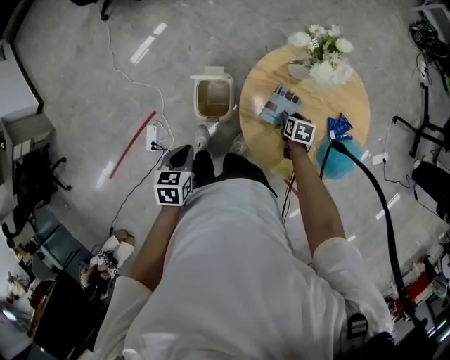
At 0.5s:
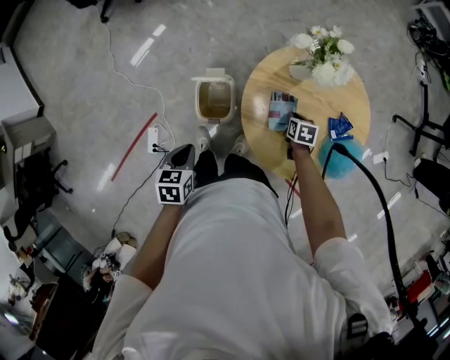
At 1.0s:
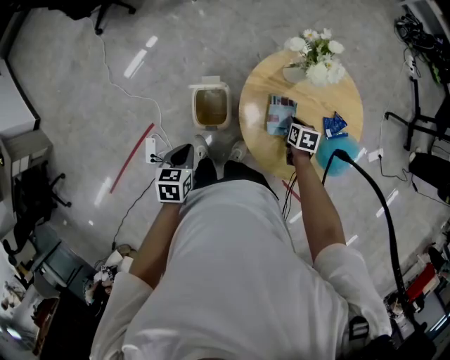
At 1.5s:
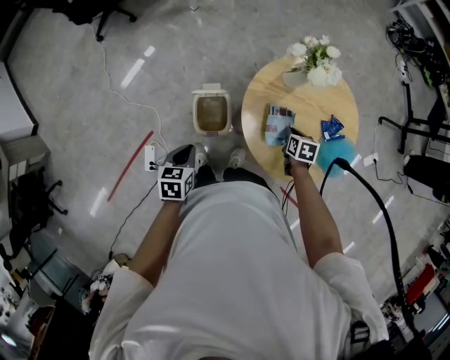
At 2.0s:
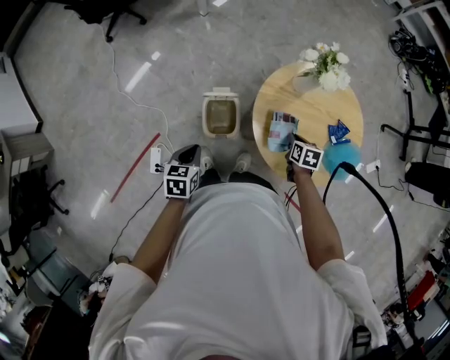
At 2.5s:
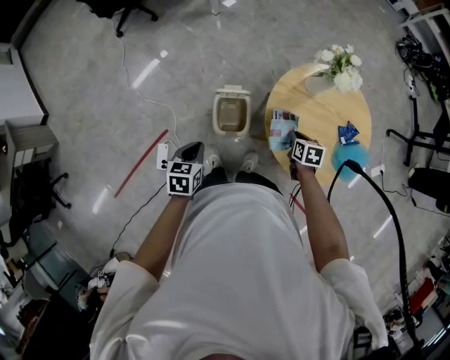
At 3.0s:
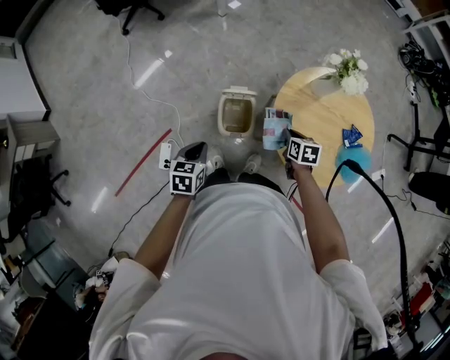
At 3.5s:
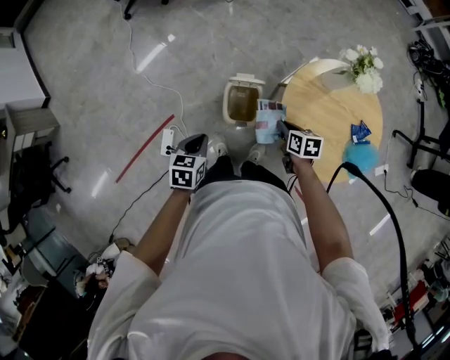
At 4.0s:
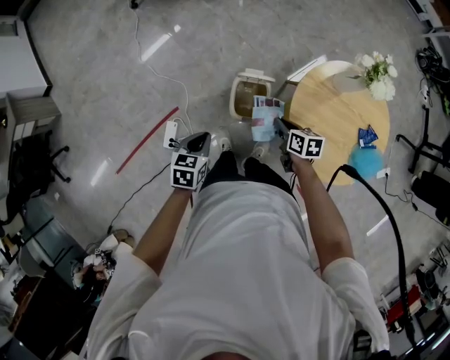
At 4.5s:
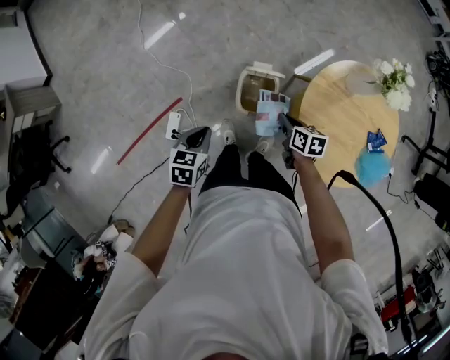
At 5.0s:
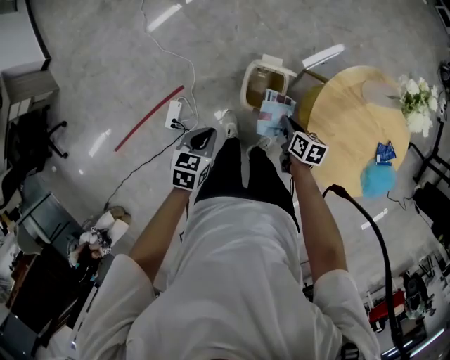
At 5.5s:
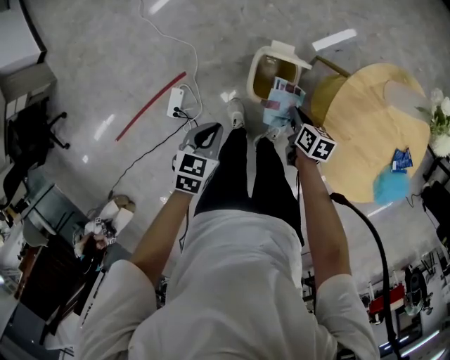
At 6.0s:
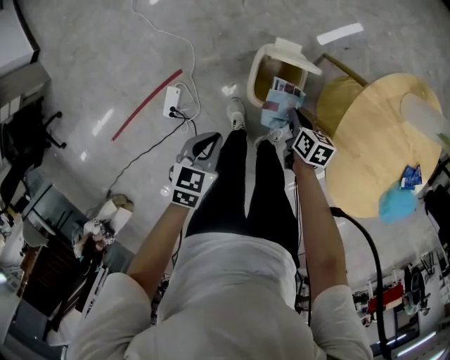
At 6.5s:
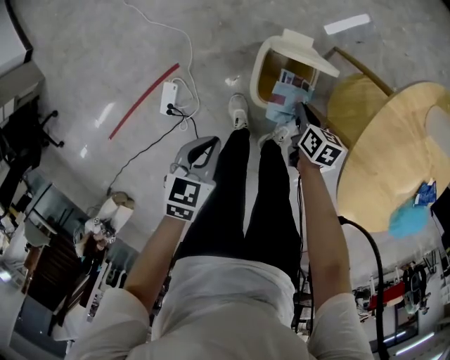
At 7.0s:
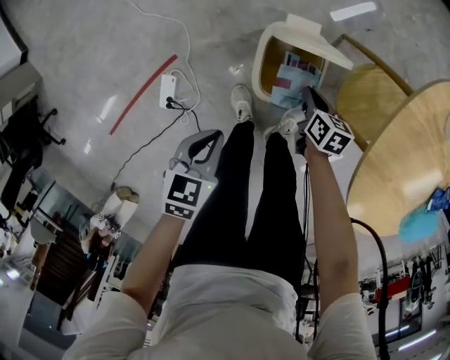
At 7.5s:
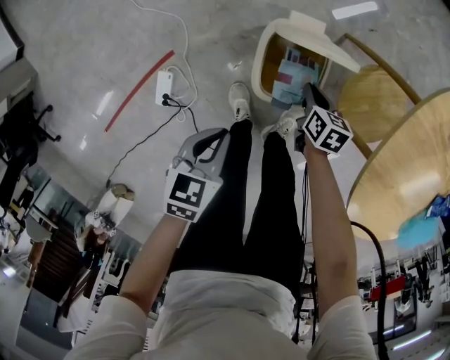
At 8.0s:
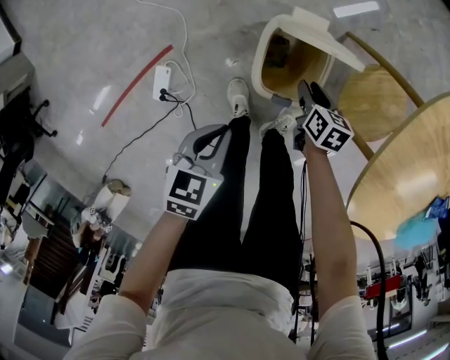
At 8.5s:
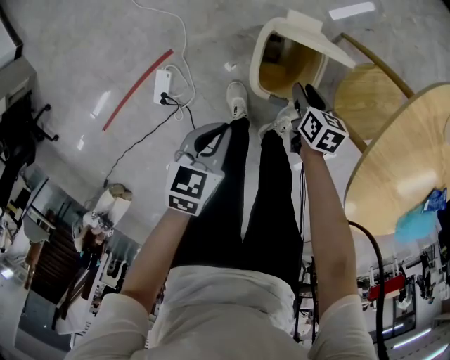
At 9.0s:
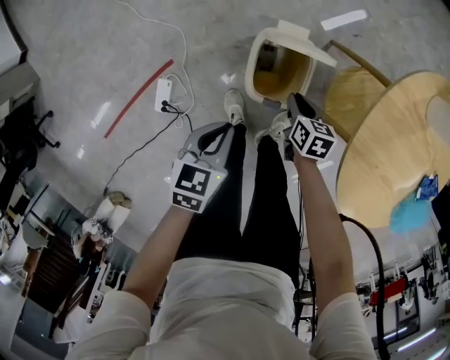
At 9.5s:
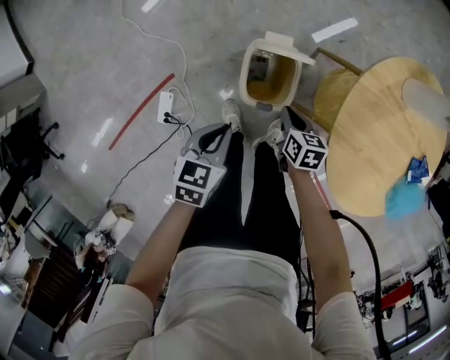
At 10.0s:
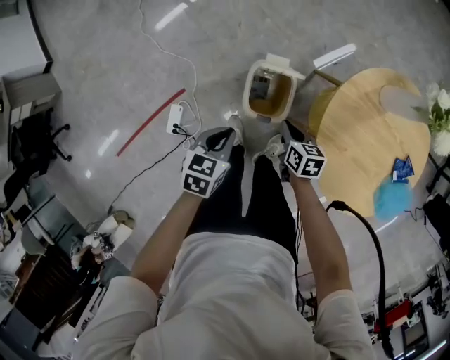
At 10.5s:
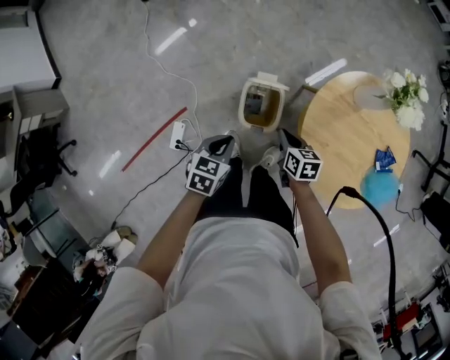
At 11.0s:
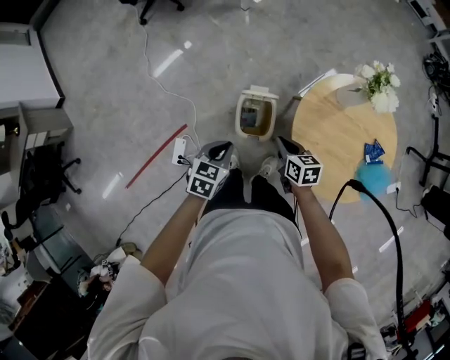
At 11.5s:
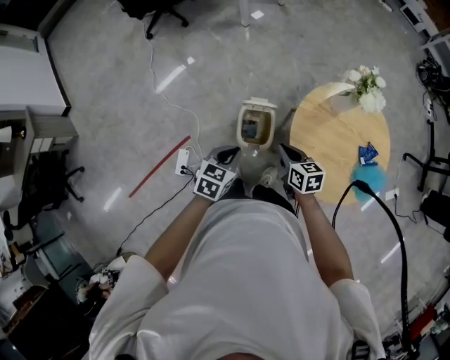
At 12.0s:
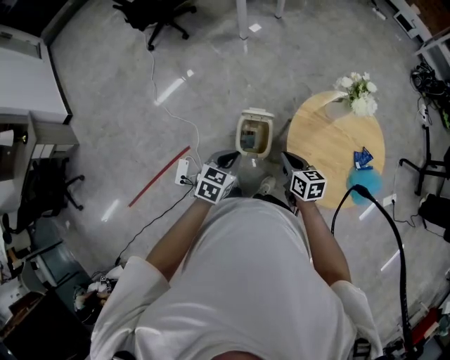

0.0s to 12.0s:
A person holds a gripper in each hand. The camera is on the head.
0.0s to 2.0s: The left gripper heads to the left, covering roughly 5 cm. Meanwhile the right gripper shifts approximately 15 cm upward, backward and to the left, and closes up.
2.0s to 4.0s: The right gripper is displaced to the left by roughly 20 cm, and swivels approximately 30 degrees. The left gripper goes approximately 10 cm to the left.
4.0s to 6.0s: The two grippers go about 20 cm downward.
6.0s to 8.0s: Both grippers move downward, roughly 15 cm. The right gripper opens its fingers.
8.0s to 10.0s: The two grippers go approximately 20 cm upward. The right gripper closes its fingers.
10.0s to 12.0s: The two grippers go some 20 cm upward.

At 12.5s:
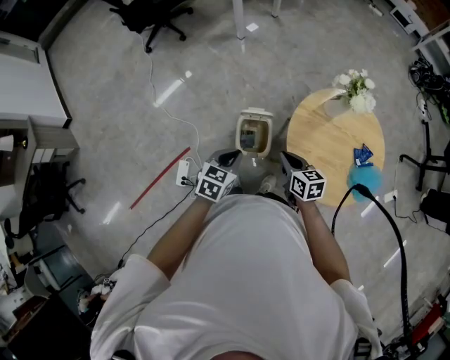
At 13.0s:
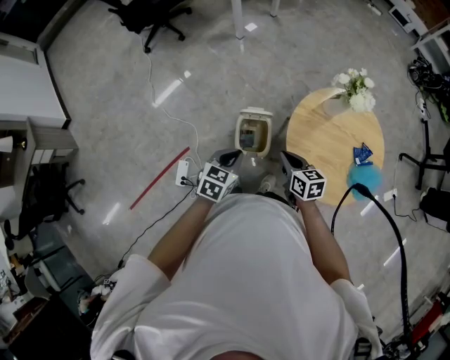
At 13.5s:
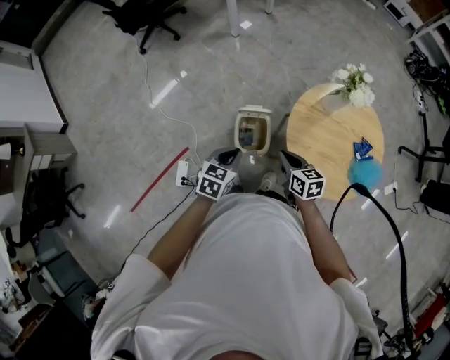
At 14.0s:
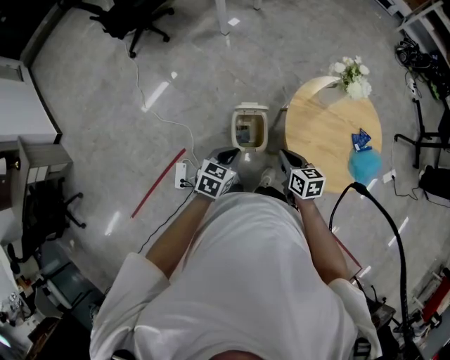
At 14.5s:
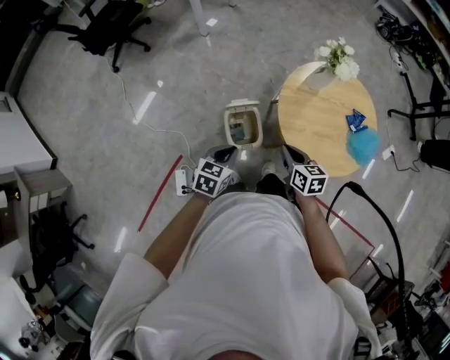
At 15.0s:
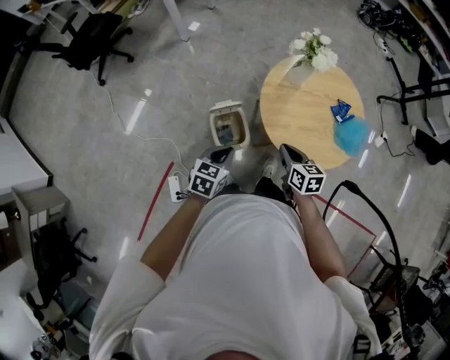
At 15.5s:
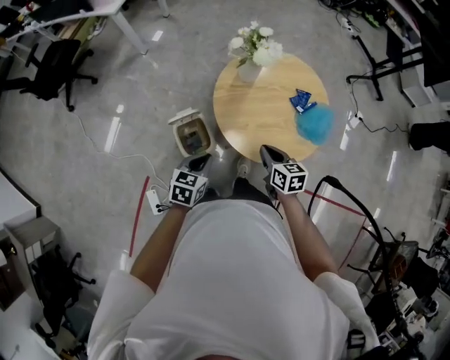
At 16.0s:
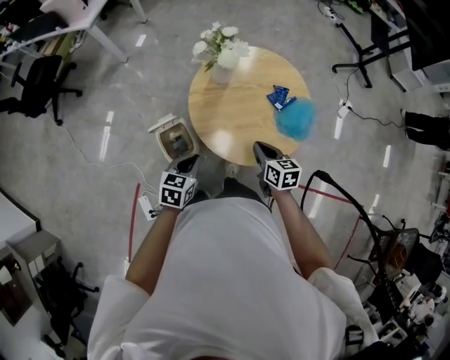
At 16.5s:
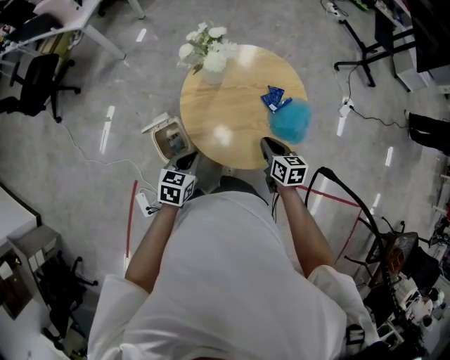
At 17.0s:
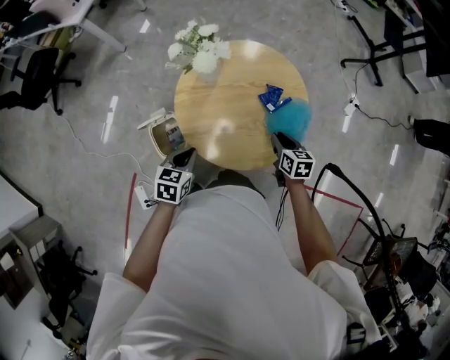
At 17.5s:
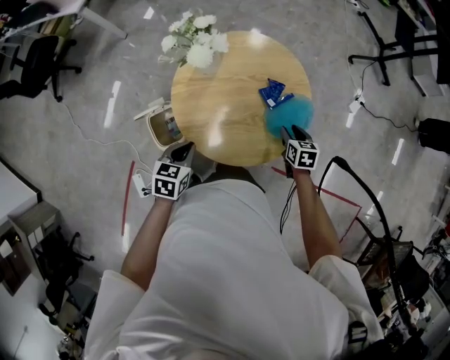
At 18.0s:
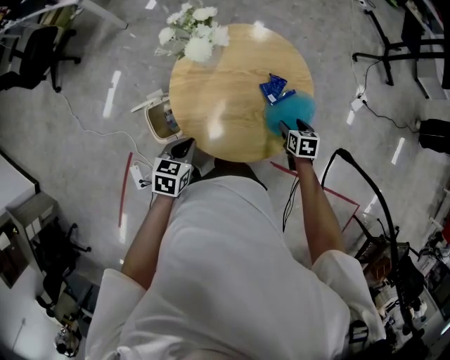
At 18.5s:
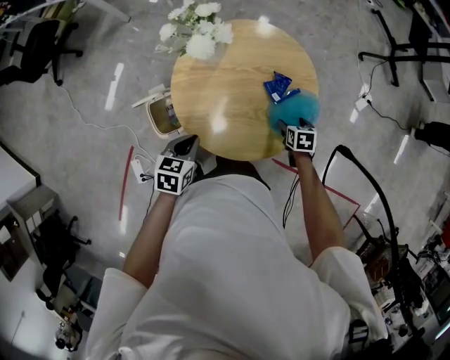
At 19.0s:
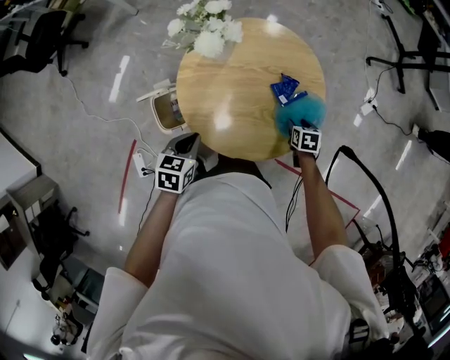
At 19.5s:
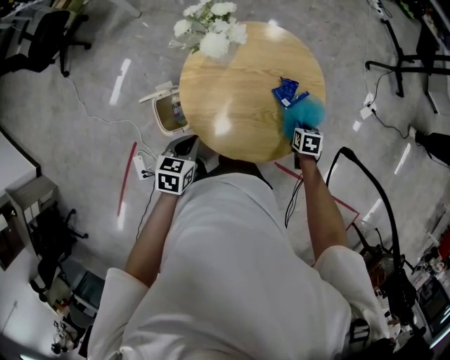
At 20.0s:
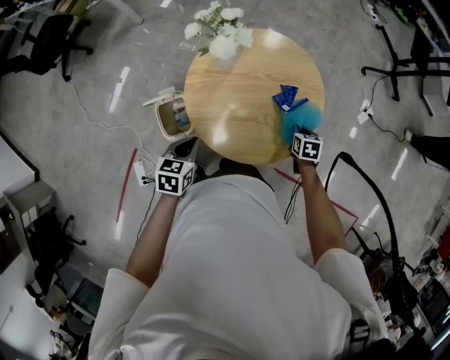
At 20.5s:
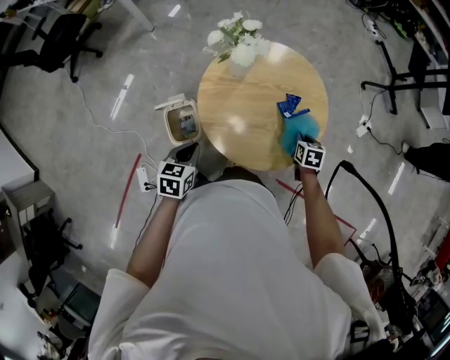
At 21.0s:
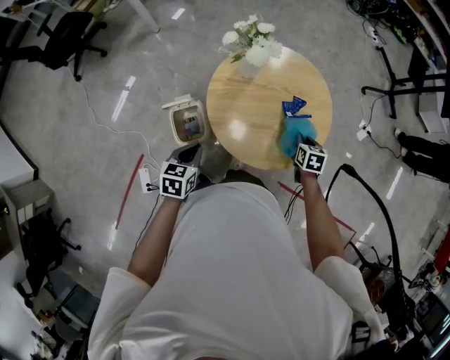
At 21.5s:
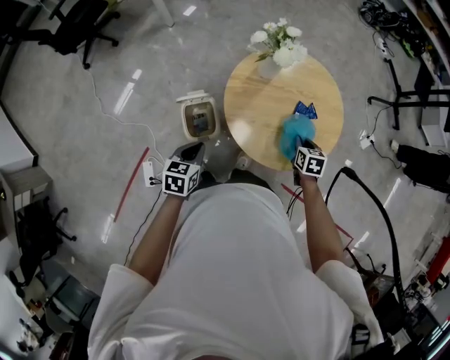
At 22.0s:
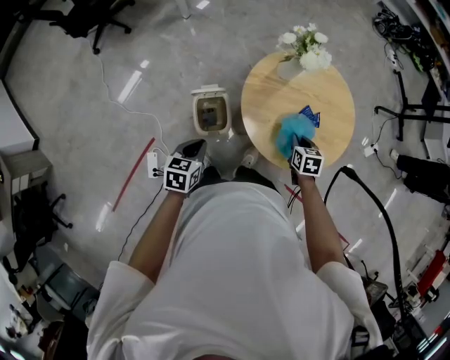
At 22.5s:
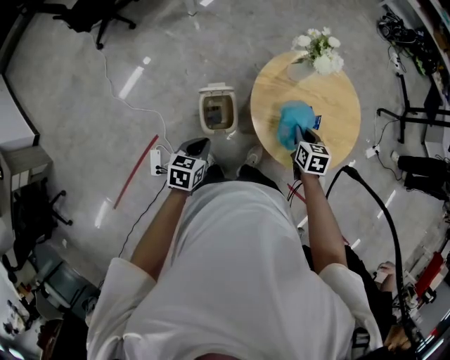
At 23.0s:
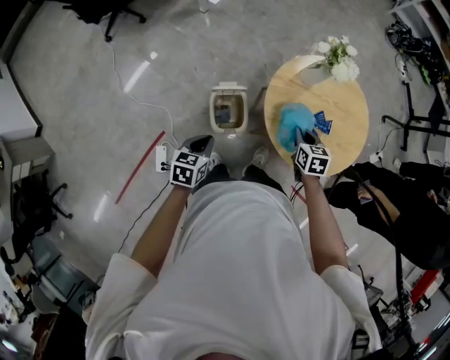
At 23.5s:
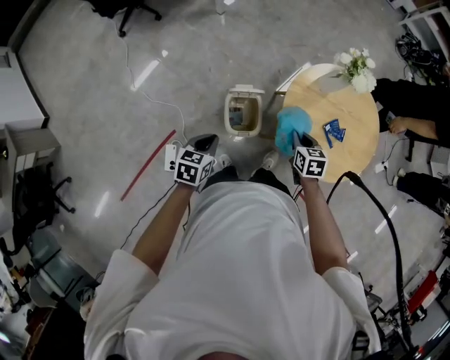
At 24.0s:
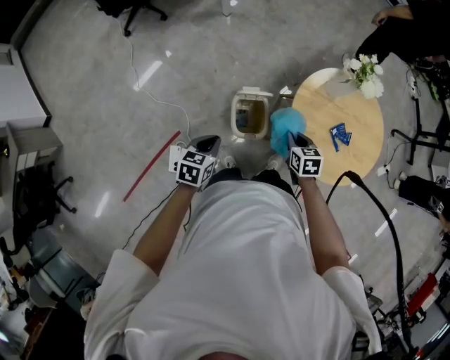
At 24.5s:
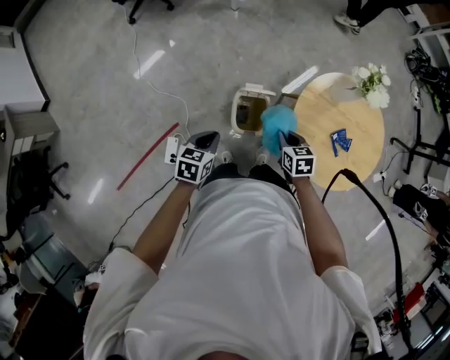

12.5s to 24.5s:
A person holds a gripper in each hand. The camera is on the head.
12.5s to 14.5s: The grippers move only a little.
14.5s to 16.5s: The left gripper travels to the right and forward by approximately 25 cm. Meanwhile the right gripper moves to the right, roughly 30 cm.
16.5s to 18.5s: The left gripper moves some 5 cm. The right gripper is displaced downward, to the right and forward by some 25 cm, changes its angle by approximately 30 degrees, and opens up.
18.5s to 20.5s: The left gripper is displaced to the left by some 10 cm, while the right gripper moves upward, roughly 5 cm, and closes.
20.5s to 22.5s: The right gripper moves to the left, roughly 25 cm, while the left gripper shifts about 20 cm to the left and backward.
22.5s to 24.5s: The left gripper travels to the left by approximately 15 cm. The right gripper heads to the left, covering about 25 cm, and changes its angle by approximately 20 degrees.

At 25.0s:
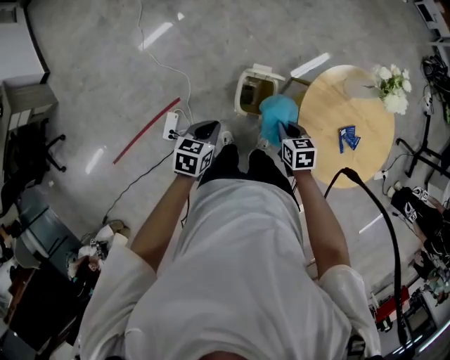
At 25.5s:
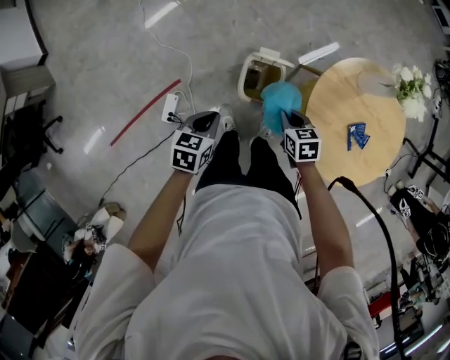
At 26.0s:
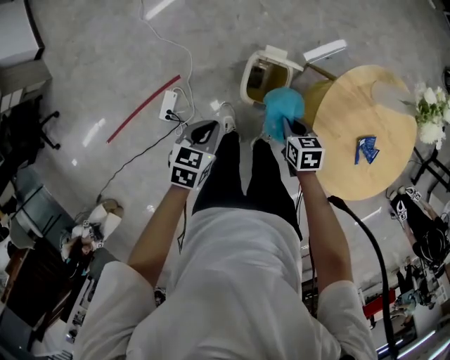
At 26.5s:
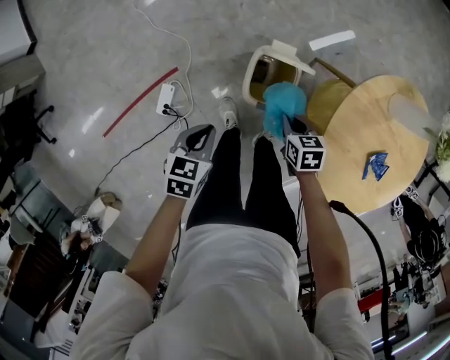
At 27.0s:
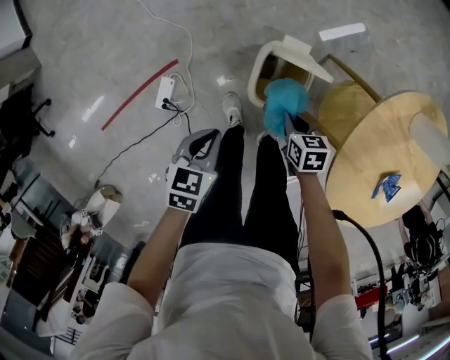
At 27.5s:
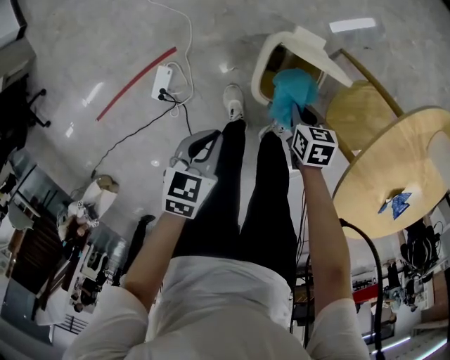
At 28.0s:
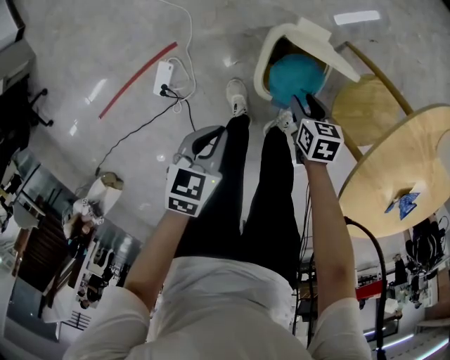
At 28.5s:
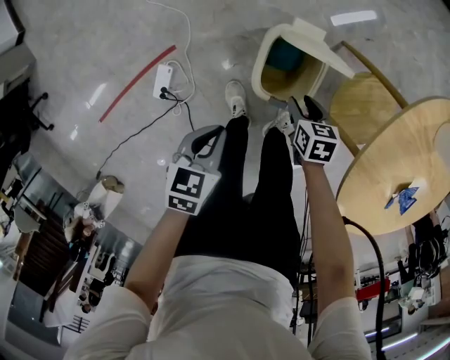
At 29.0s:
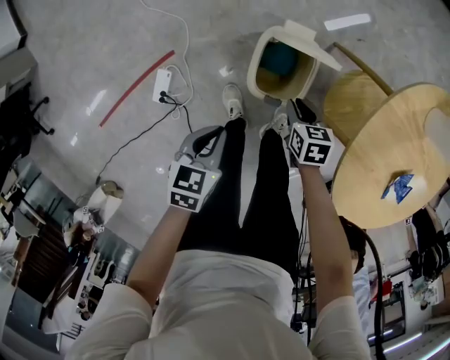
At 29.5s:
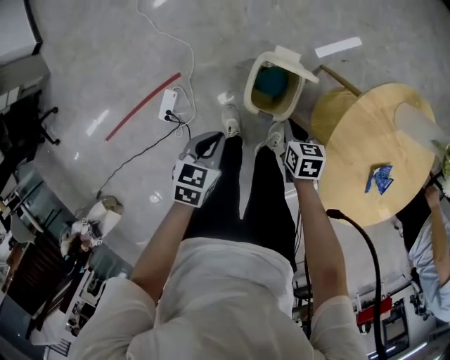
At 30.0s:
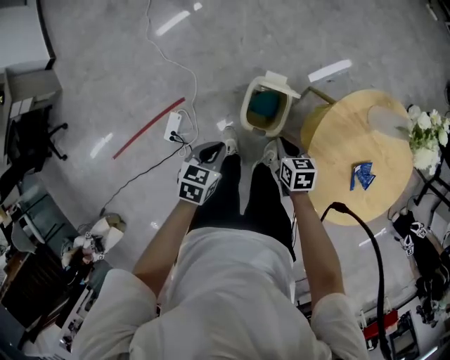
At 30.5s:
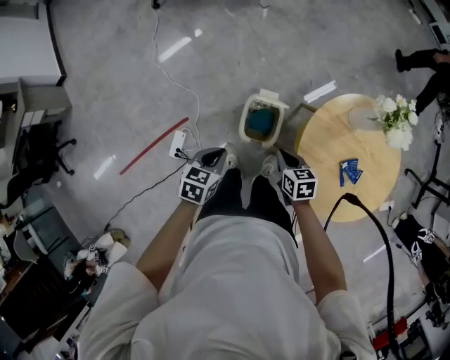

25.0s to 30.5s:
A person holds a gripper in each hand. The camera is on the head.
25.0s to 27.0s: Both grippers travel together downward, some 20 cm.
27.0s to 28.5s: The grippers both shift downward by approximately 5 cm. The right gripper opens up.
28.5s to 30.5s: The grippers both shift upward by some 25 cm. The right gripper closes its fingers.
